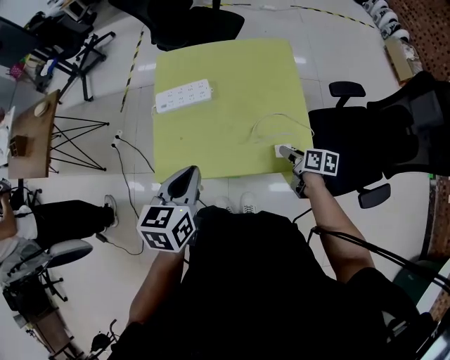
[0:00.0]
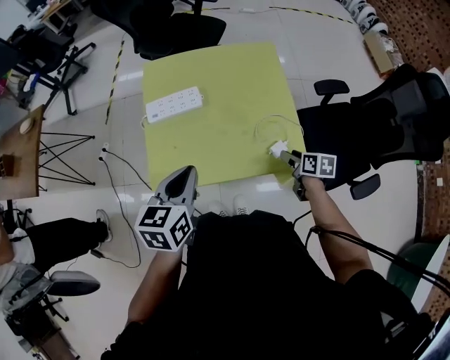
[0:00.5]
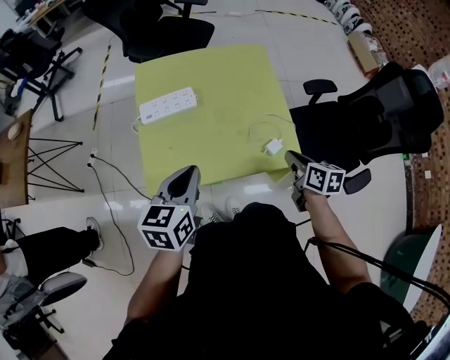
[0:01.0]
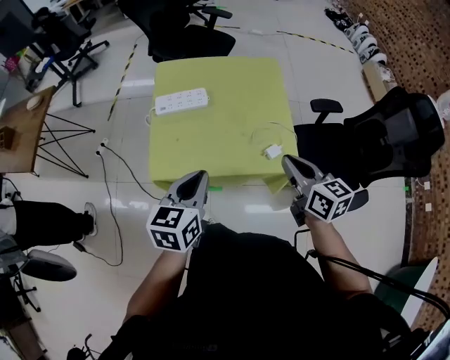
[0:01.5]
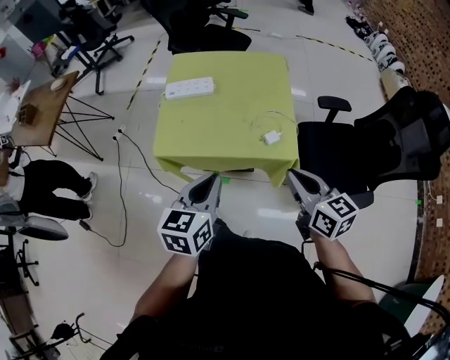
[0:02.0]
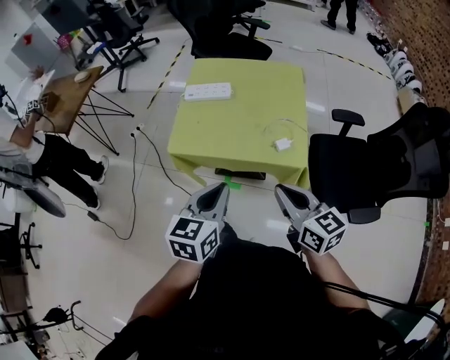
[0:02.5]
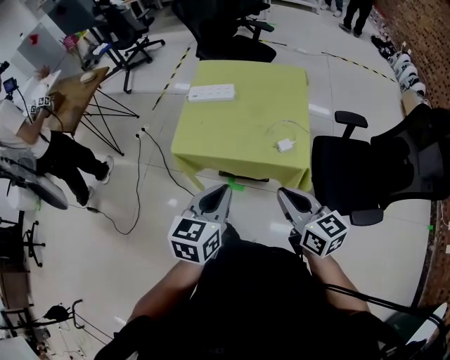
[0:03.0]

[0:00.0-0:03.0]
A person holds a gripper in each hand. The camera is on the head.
0:00.0 to 0:01.5: The left gripper changes place by roughly 5 cm. The right gripper goes about 25 cm upward, rotates some 40 degrees, and closes its fingers.
0:01.5 to 0:03.0: The left gripper shifts roughly 15 cm backward and to the right. Meanwhile the right gripper moves backward, about 15 cm.

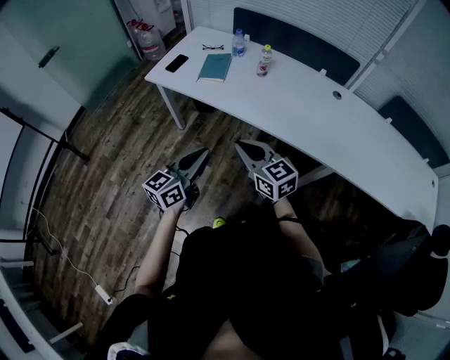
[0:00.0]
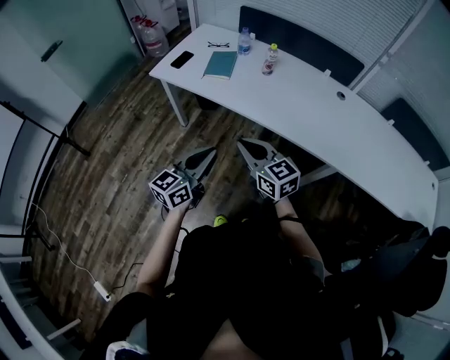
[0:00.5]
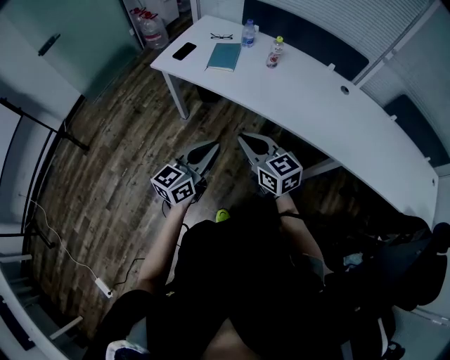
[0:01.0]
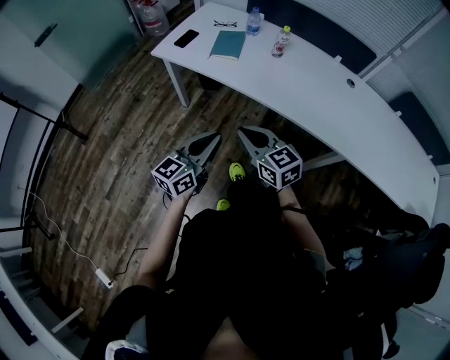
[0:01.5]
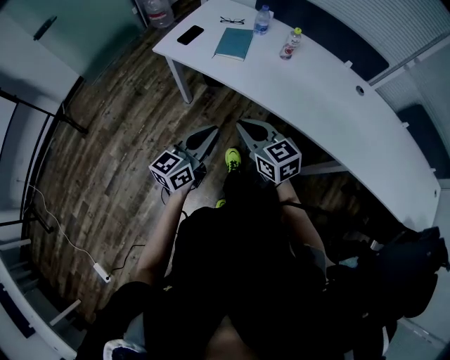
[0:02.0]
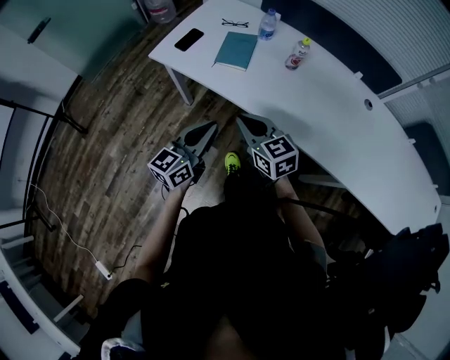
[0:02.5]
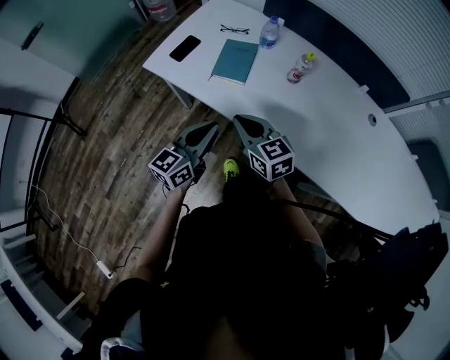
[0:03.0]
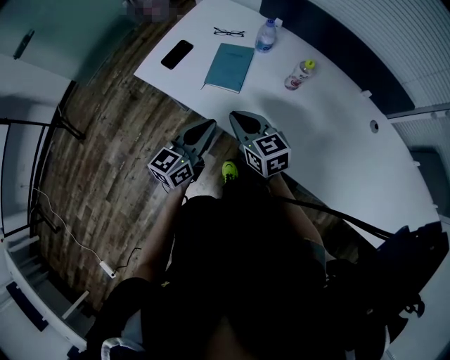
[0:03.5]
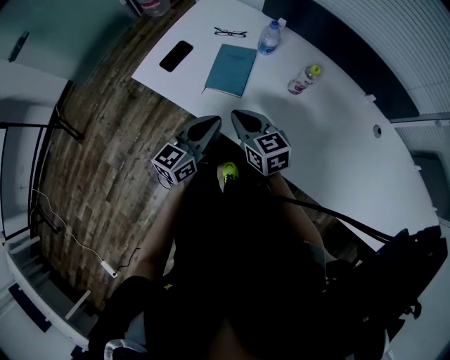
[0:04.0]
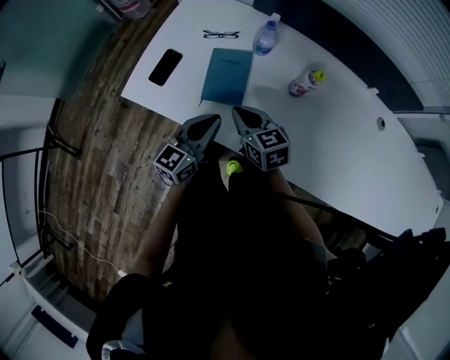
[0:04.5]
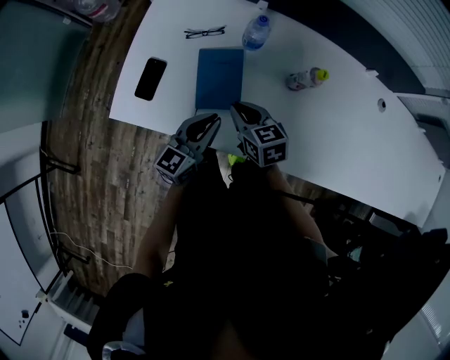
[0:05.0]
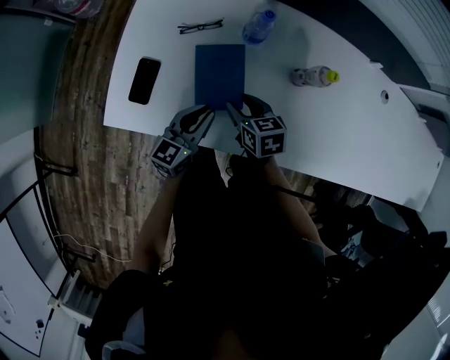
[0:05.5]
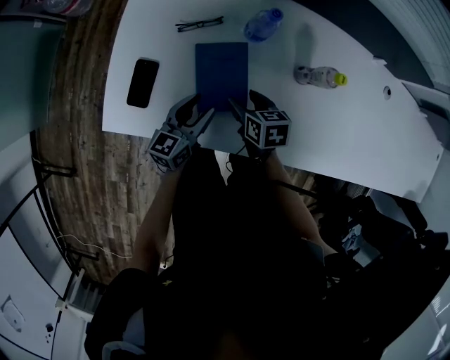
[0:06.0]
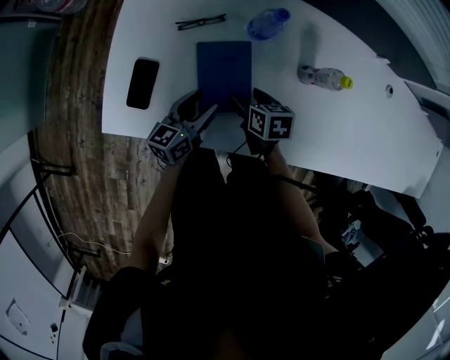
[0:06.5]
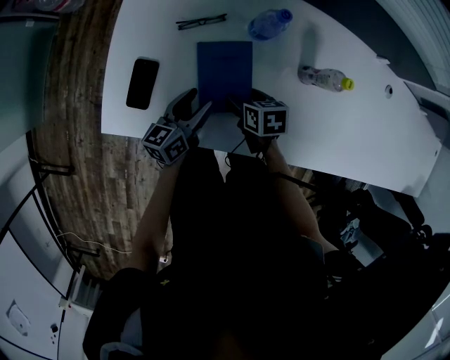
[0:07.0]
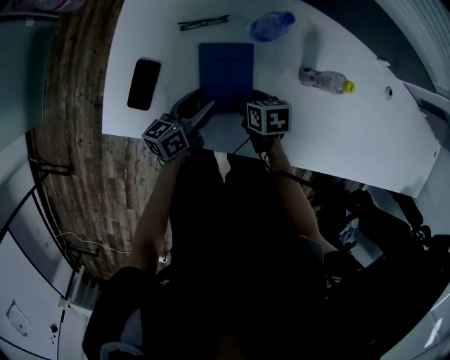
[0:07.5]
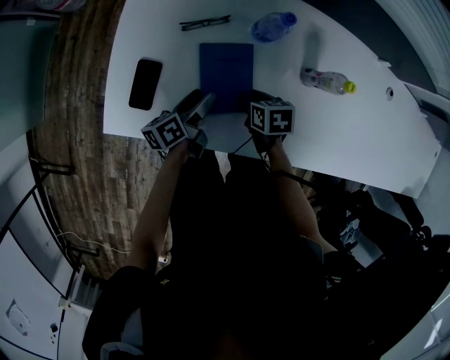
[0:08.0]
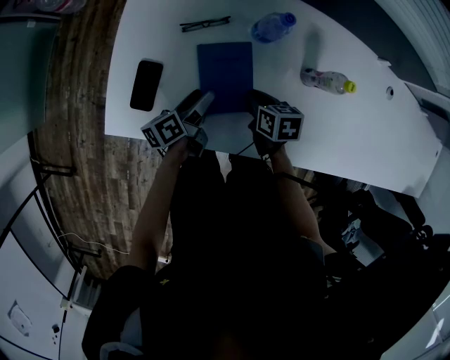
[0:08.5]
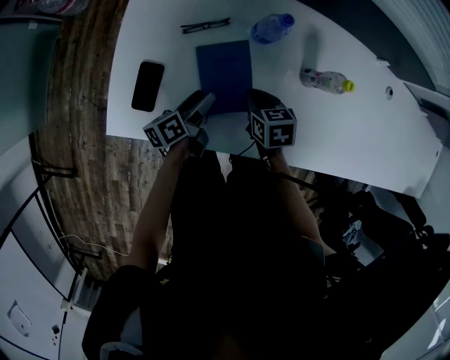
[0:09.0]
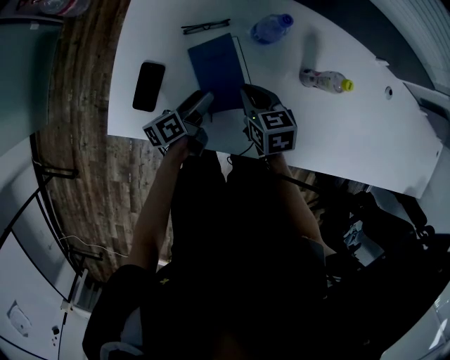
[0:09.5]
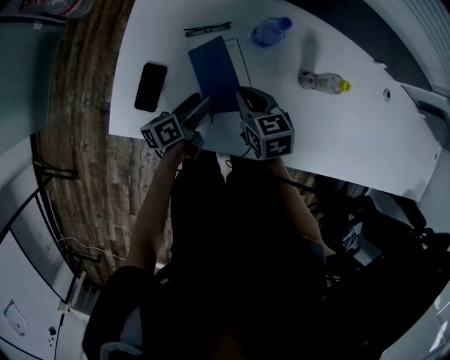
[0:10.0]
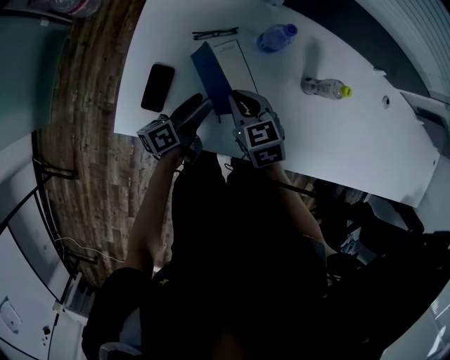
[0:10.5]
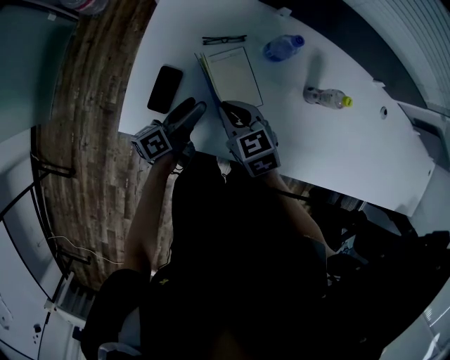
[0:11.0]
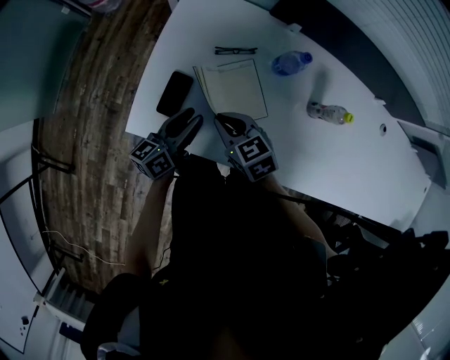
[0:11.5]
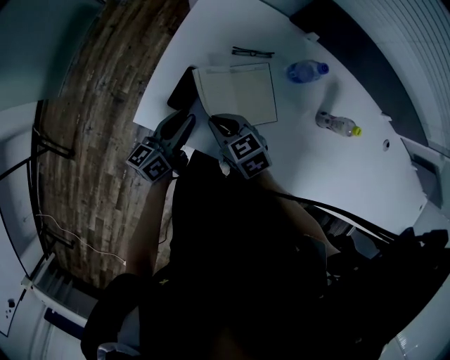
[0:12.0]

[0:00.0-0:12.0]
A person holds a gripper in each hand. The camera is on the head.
0:00.0 to 0:02.0: The left gripper travels forward by roughly 5 cm, while the right gripper heads to the left and forward, covering approximately 10 cm.
0:02.0 to 0:04.0: The grippers both shift forward by approximately 30 cm.
0:04.0 to 0:06.0: The left gripper is displaced forward and downward by about 25 cm, rotates roughly 20 degrees, and opens its fingers. Meanwhile the right gripper travels downward and forward by some 25 cm, rotates approximately 40 degrees, and opens up.
0:06.0 to 0:08.0: The left gripper changes place by some 5 cm, and twists some 40 degrees counterclockwise, seen from behind. The right gripper closes.
0:08.0 to 0:10.0: The right gripper travels upward by about 10 cm, and swivels approximately 30 degrees.
0:10.0 to 0:12.0: The left gripper changes place by about 15 cm, swivels about 30 degrees, and closes its fingers. Meanwhile the right gripper ends up roughly 20 cm from where it was, and changes its angle by roughly 30 degrees.

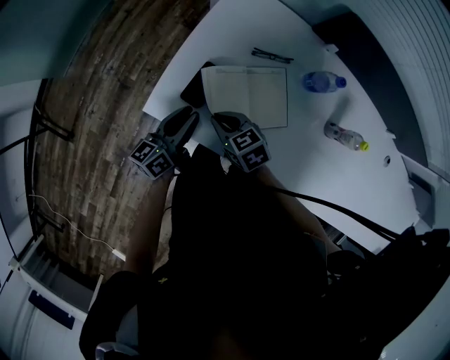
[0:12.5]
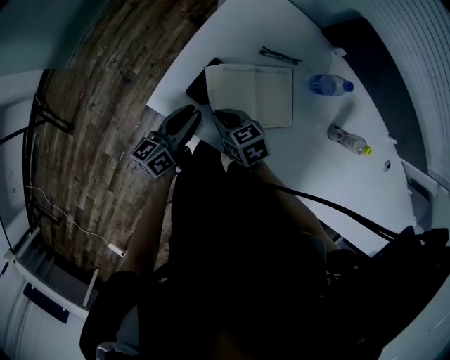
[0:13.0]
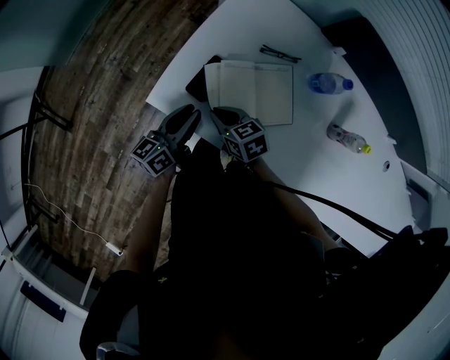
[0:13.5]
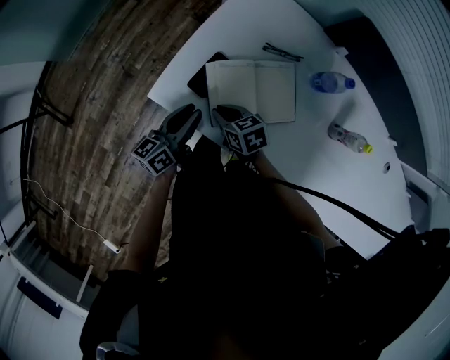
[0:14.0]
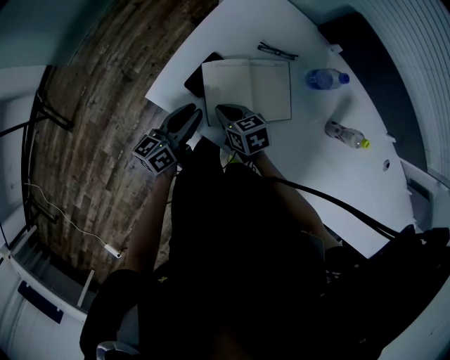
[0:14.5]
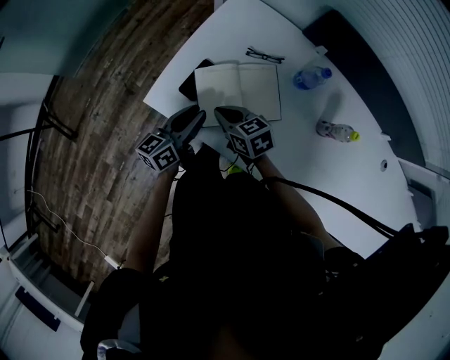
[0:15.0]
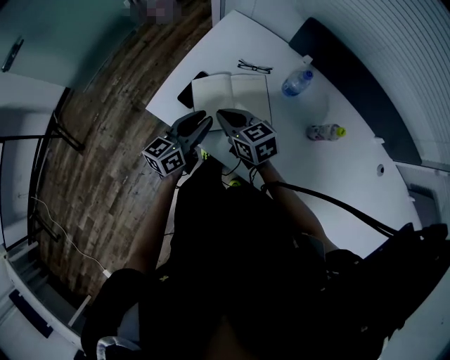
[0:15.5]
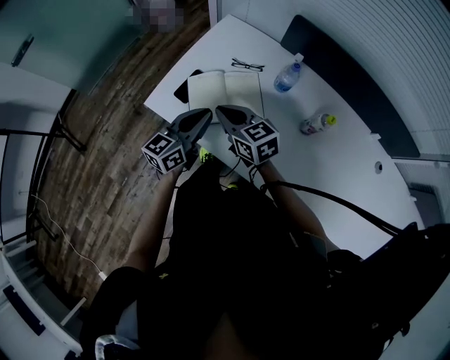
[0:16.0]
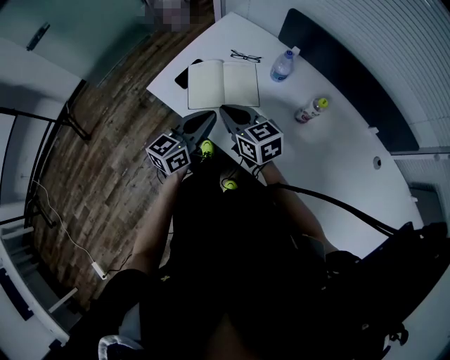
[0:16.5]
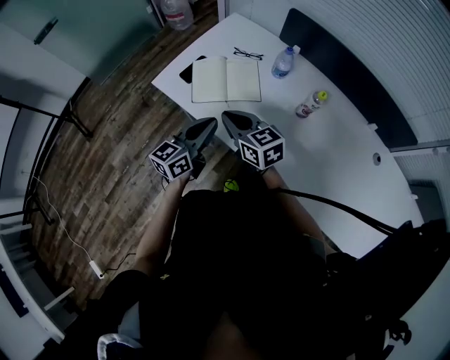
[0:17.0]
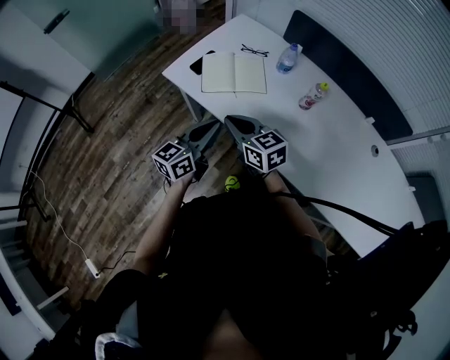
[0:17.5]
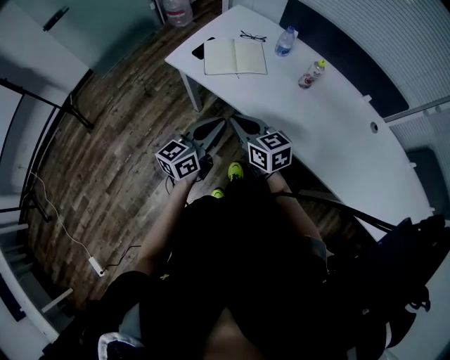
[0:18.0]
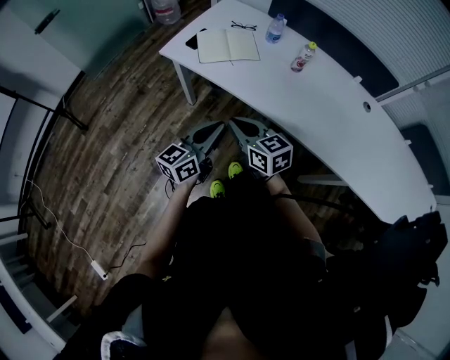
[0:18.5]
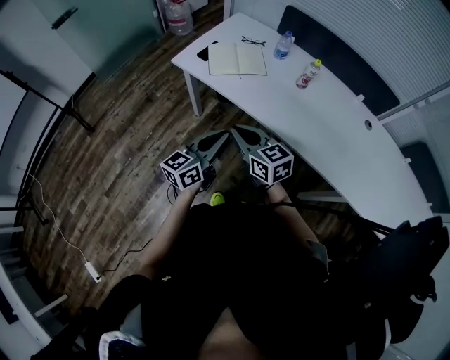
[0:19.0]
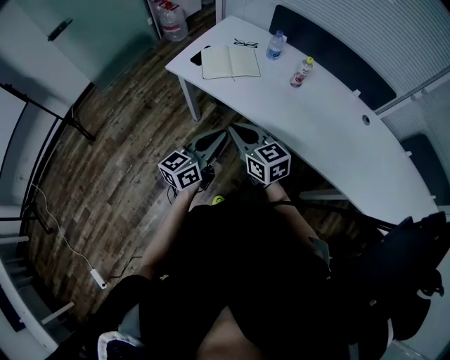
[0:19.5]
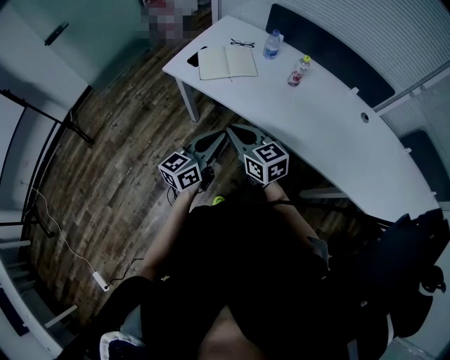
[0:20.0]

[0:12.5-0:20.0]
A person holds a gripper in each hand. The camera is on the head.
0:12.5 to 0:14.5: The grippers move only a little.
0:14.5 to 0:16.5: The left gripper heads backward, to the right and upward, covering approximately 25 cm, rotates roughly 30 degrees, and closes. The right gripper is displaced upward, backward and to the right by approximately 25 cm, and changes its angle by some 30 degrees.
0:16.5 to 0:18.0: Both grippers travel together backward, approximately 20 cm.
0:18.0 to 0:20.0: Both grippers travel together backward, some 5 cm.

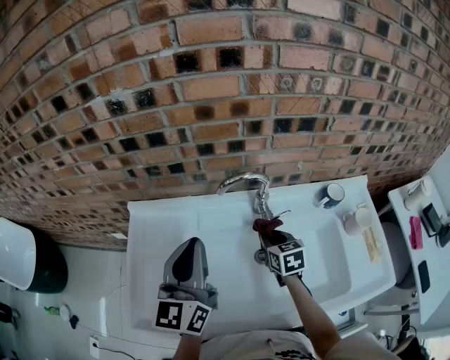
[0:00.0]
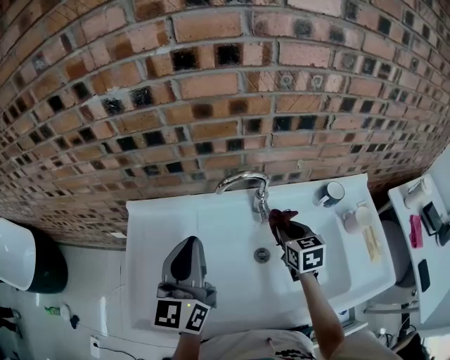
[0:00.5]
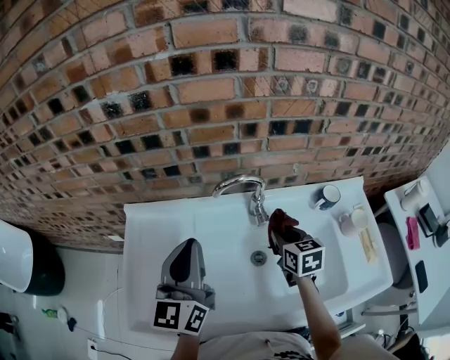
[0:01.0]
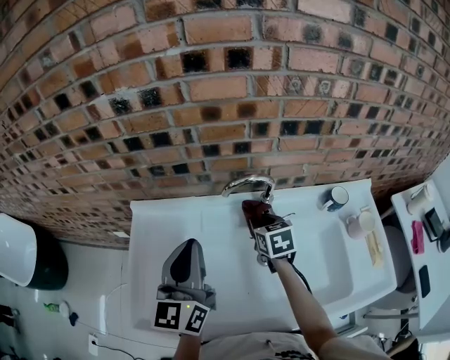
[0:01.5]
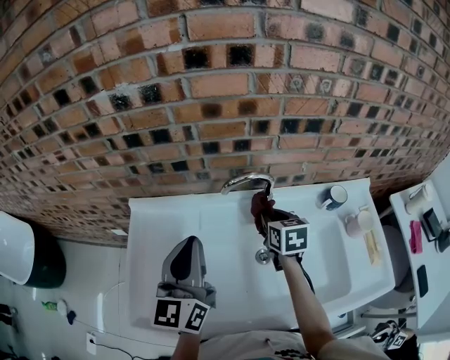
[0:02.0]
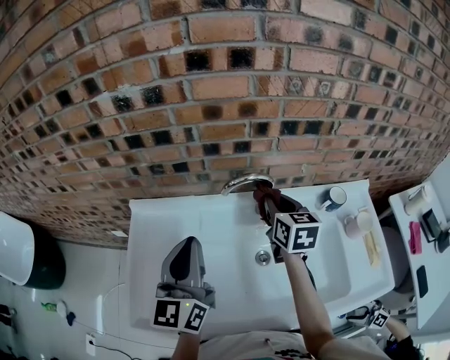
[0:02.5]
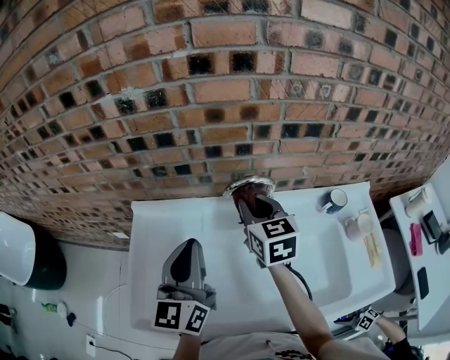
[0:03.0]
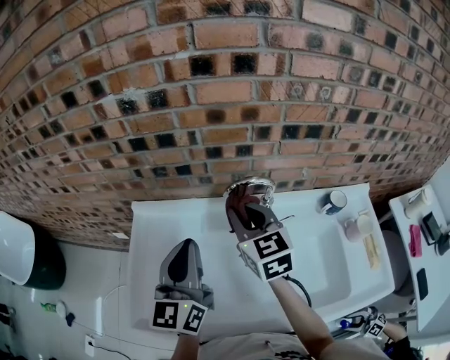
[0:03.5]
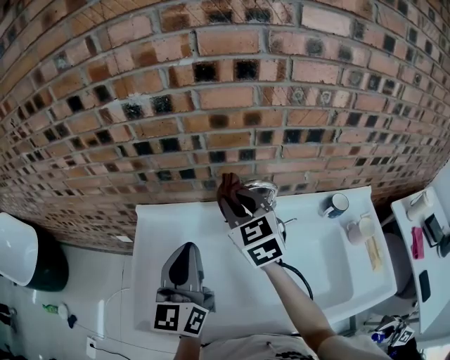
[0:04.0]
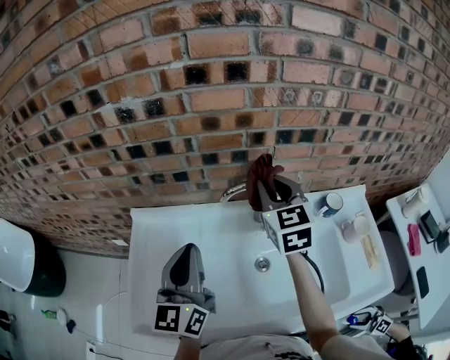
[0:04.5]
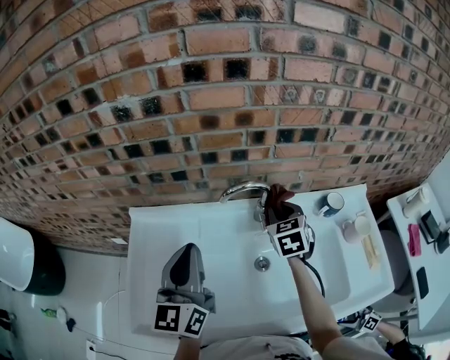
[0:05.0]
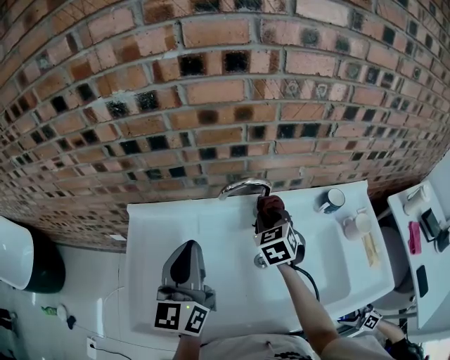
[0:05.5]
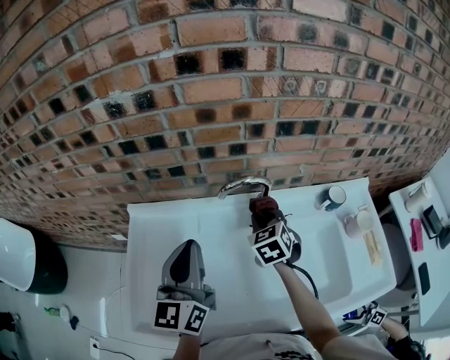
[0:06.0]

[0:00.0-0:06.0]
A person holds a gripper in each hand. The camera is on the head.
0:00.0 to 0:02.0: The right gripper moves upward and forward, some 10 cm, and reaches approximately 5 cm to the right, then returns.
0:02.0 to 0:04.0: The right gripper moves upward and to the left, approximately 20 cm, and rotates about 40 degrees.
0:04.0 to 0:06.0: The right gripper goes roughly 20 cm downward and to the right, and rotates some 30 degrees.
